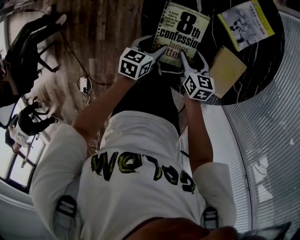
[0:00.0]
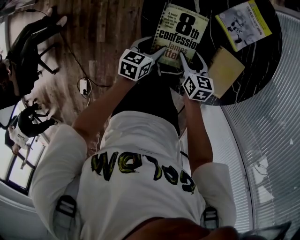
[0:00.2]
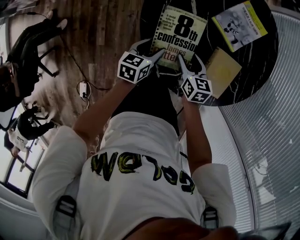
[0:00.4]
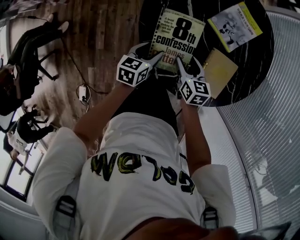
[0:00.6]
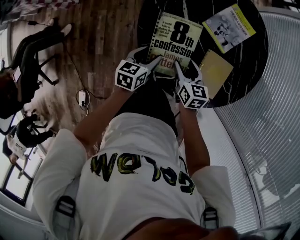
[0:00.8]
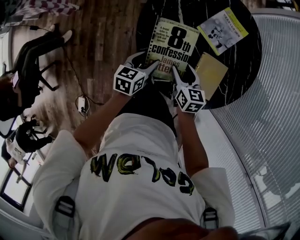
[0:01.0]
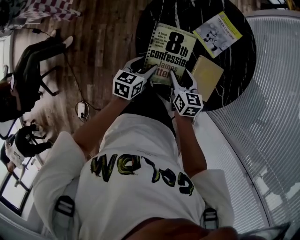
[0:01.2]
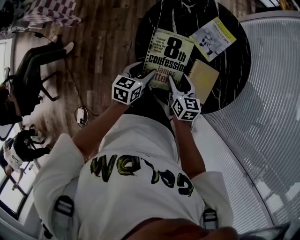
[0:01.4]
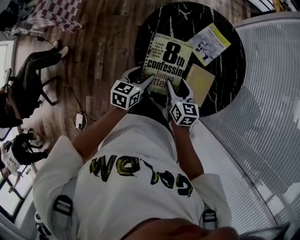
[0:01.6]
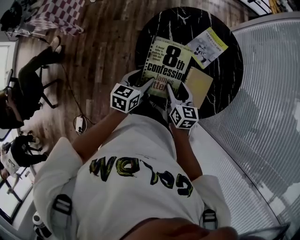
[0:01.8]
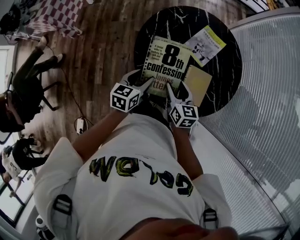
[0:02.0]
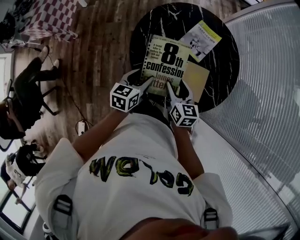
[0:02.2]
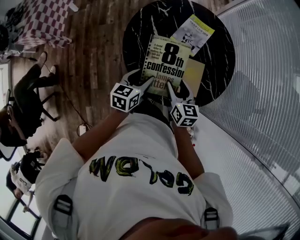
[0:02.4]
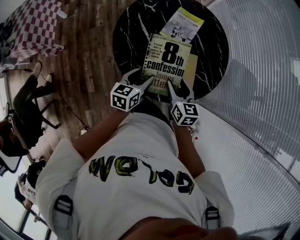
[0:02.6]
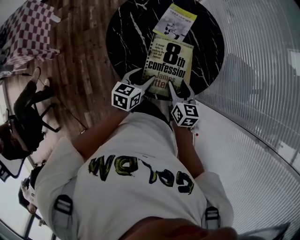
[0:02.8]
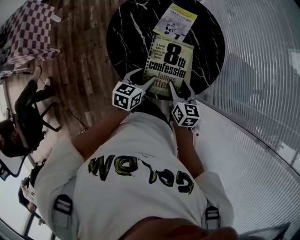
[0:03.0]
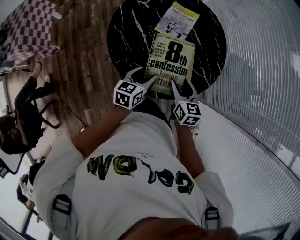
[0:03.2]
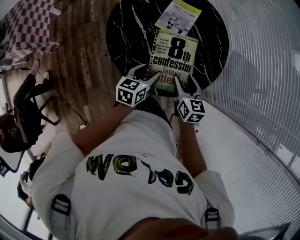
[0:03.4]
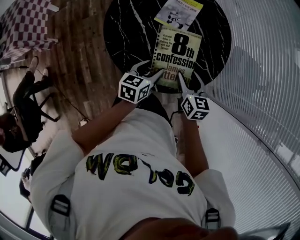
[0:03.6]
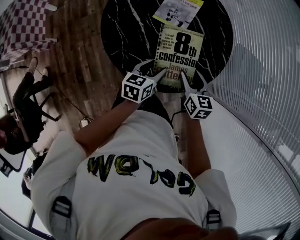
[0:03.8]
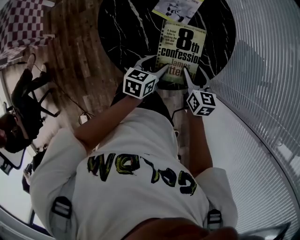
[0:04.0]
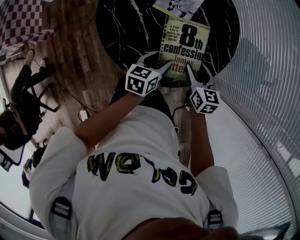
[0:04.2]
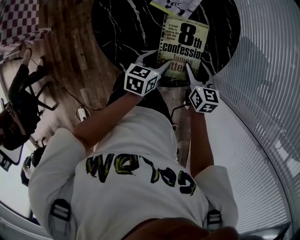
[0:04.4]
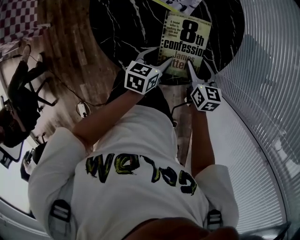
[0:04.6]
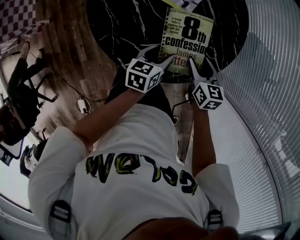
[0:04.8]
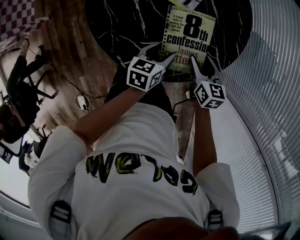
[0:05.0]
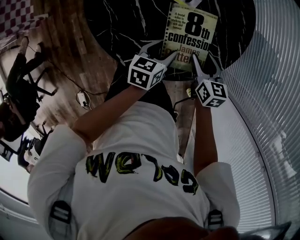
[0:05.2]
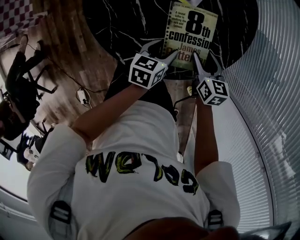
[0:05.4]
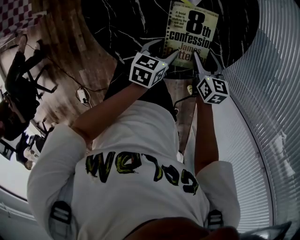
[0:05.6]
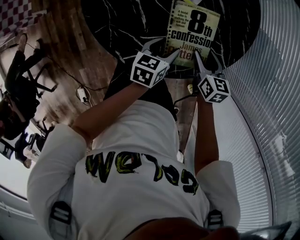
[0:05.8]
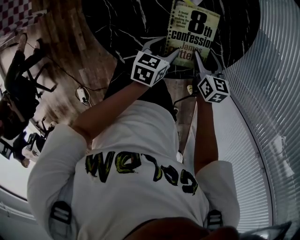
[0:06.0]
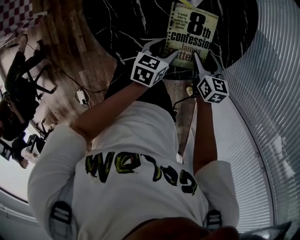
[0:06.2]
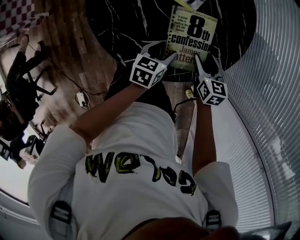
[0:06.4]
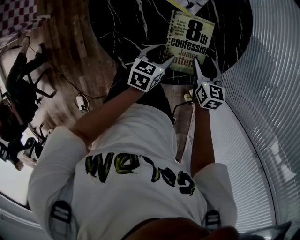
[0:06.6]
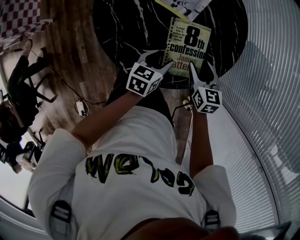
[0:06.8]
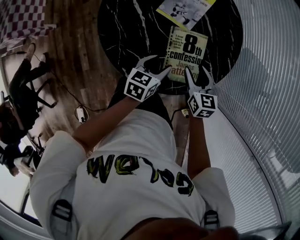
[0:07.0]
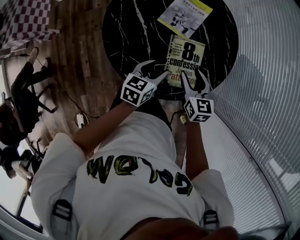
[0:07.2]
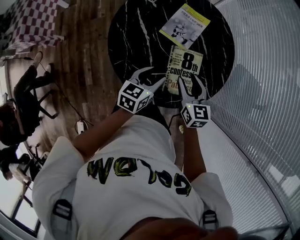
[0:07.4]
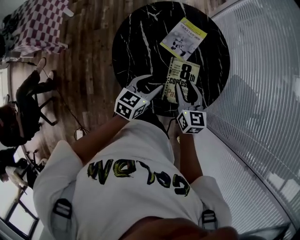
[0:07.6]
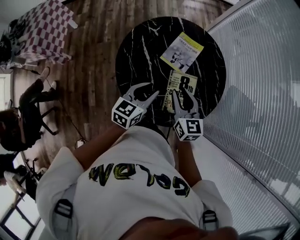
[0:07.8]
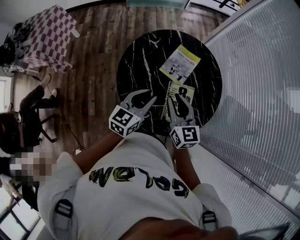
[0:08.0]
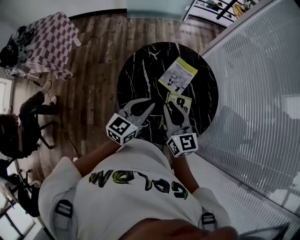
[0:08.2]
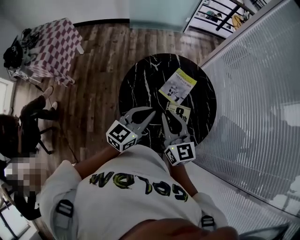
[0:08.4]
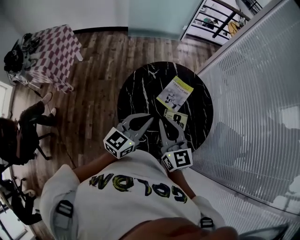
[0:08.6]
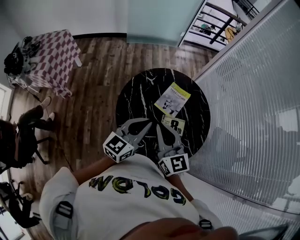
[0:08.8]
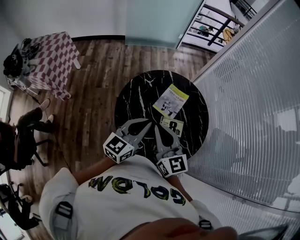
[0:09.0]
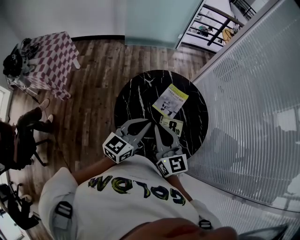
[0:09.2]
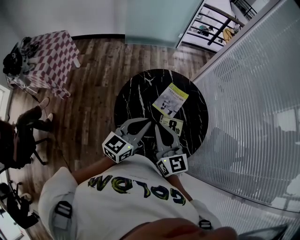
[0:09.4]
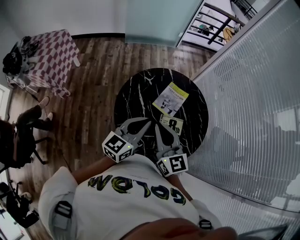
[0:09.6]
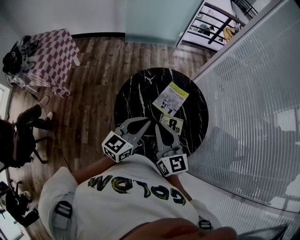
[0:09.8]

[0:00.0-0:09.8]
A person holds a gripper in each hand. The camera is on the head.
0:00.0 to 0:01.4: Both grippers travel together upward, approximately 15 cm.
0:01.4 to 0:02.8: The left gripper heads to the right and upward, covering approximately 15 cm; the right gripper heads to the right, upward and backward, covering roughly 15 cm.
0:02.8 to 0:04.2: Both grippers move to the right, approximately 5 cm.
0:04.2 to 0:05.6: The grippers move only a little.
0:05.6 to 0:07.0: The two grippers go about 5 cm upward.
0:07.0 to 0:08.4: The two grippers go about 30 cm upward and to the left. The right gripper angles its fingers upward, by some 30 degrees, and closes its fingers, while the left gripper turns by approximately 40 degrees, and closes its fingers.
0:08.4 to 0:09.8: The grippers move only a little.

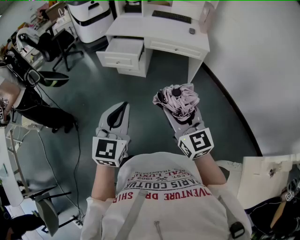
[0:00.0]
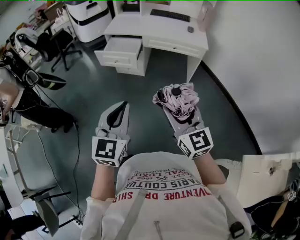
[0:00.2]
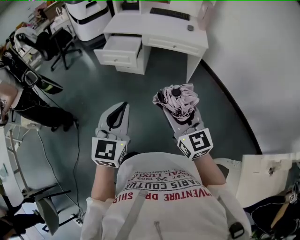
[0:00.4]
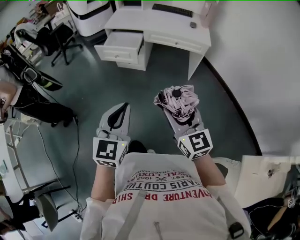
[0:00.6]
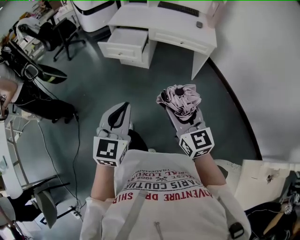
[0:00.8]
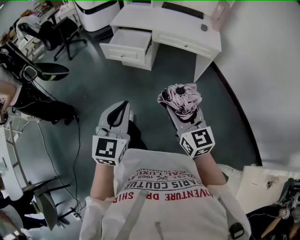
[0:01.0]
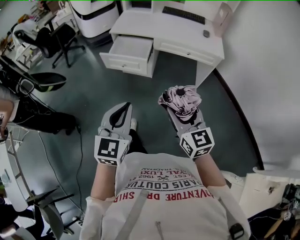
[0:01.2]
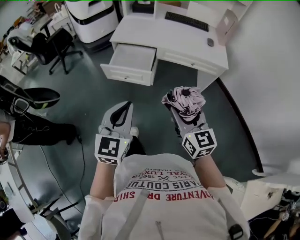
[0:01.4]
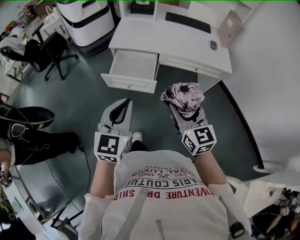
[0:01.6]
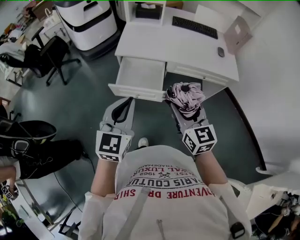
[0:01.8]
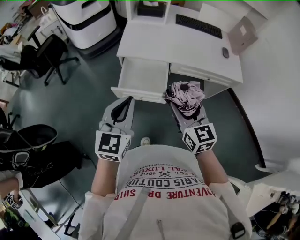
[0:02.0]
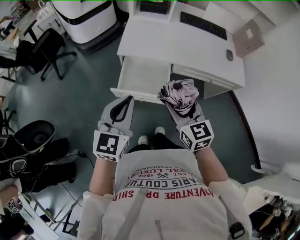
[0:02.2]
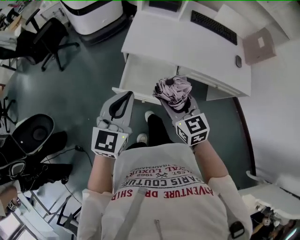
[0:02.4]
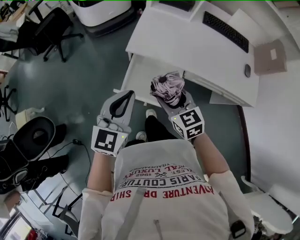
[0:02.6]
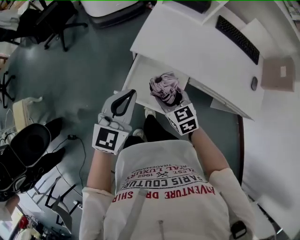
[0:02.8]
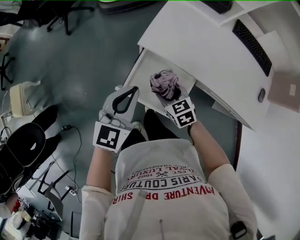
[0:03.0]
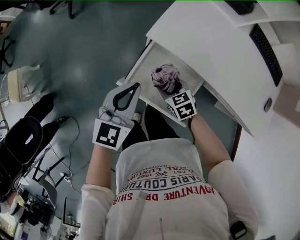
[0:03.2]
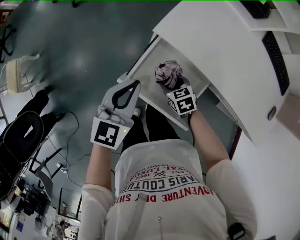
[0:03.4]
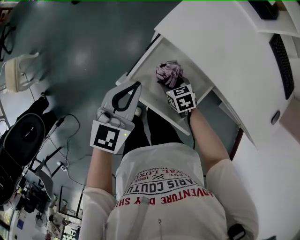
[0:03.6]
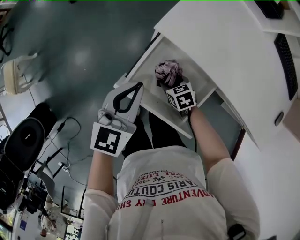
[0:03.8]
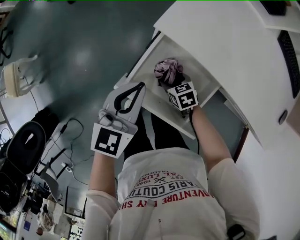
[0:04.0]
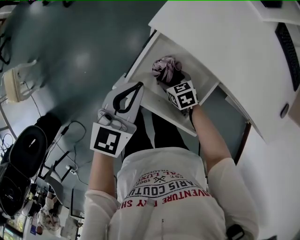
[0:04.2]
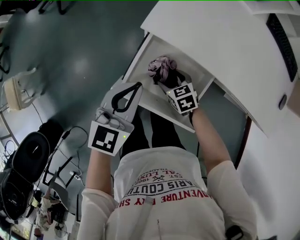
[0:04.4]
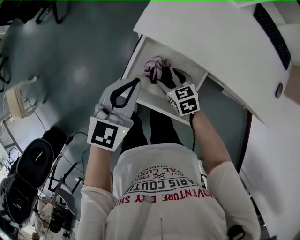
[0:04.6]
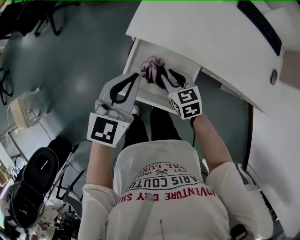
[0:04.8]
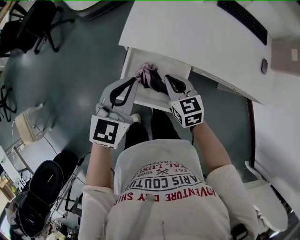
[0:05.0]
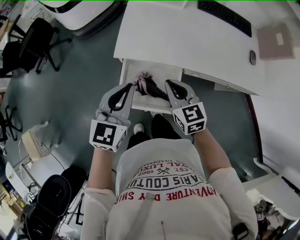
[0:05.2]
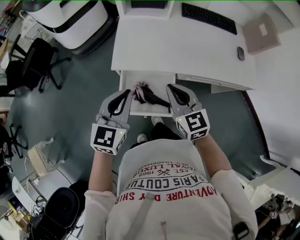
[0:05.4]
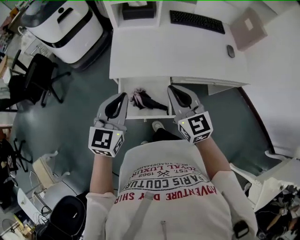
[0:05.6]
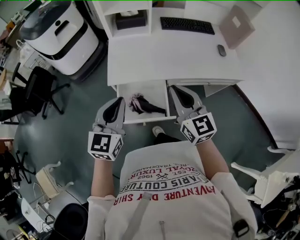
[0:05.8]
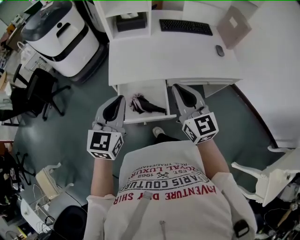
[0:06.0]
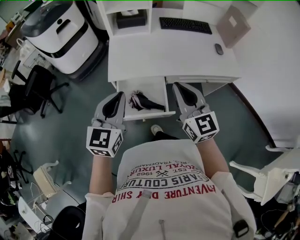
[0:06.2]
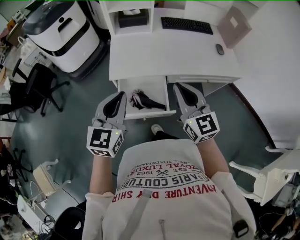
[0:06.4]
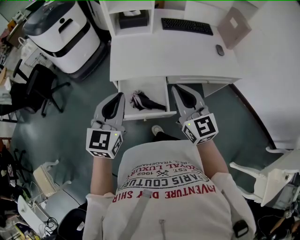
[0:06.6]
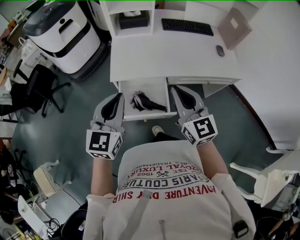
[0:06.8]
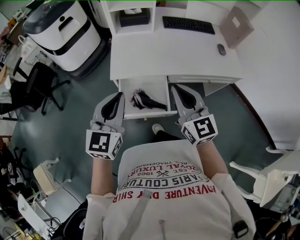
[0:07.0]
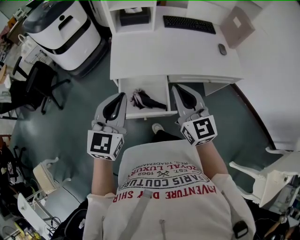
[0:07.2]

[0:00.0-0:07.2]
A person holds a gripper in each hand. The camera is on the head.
0:00.0 to 0:01.4: Both grippers travel together forward, roughly 25 cm.
0:01.4 to 0:02.8: The two grippers travel together, forward and to the left, approximately 50 cm. The right gripper shifts some 20 cm downward, and rotates some 40 degrees.
0:02.8 to 0:04.4: The left gripper heads downward, covering roughly 15 cm, while the right gripper travels downward by approximately 25 cm, and turns by approximately 20 degrees.
0:04.4 to 0:05.8: The right gripper goes some 50 cm upward, tilts its fingers some 50 degrees upward, and closes. Meanwhile the left gripper moves upward, approximately 25 cm, and turns by roughly 30 degrees.
0:05.8 to 0:07.2: The grippers move only a little.

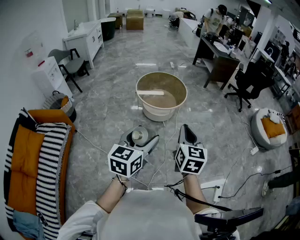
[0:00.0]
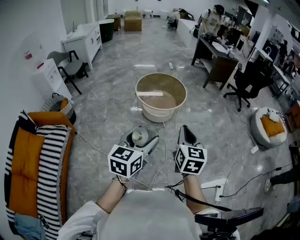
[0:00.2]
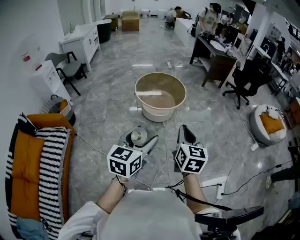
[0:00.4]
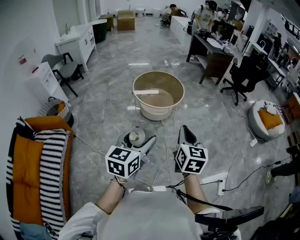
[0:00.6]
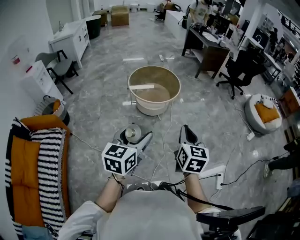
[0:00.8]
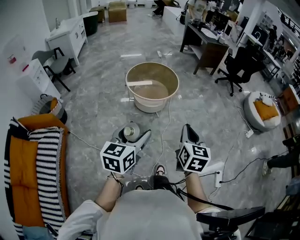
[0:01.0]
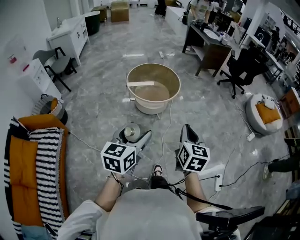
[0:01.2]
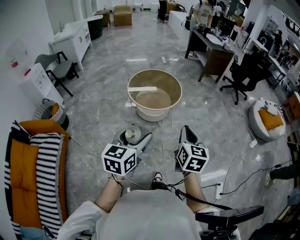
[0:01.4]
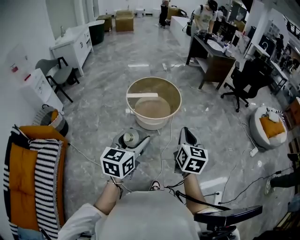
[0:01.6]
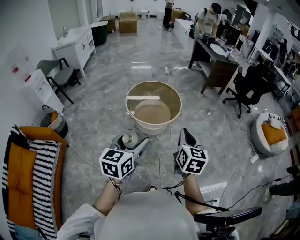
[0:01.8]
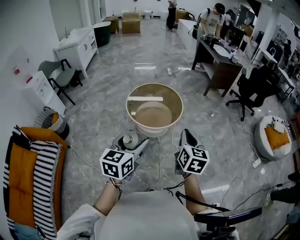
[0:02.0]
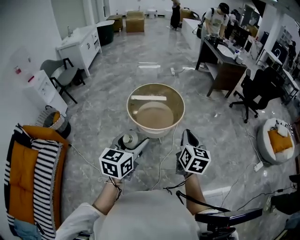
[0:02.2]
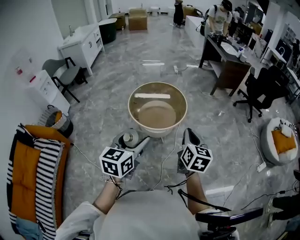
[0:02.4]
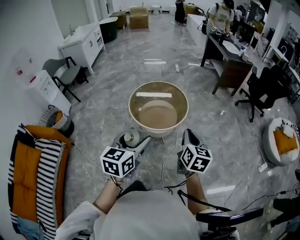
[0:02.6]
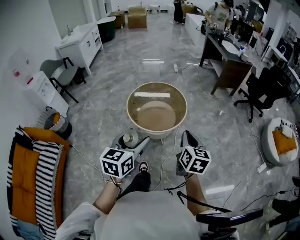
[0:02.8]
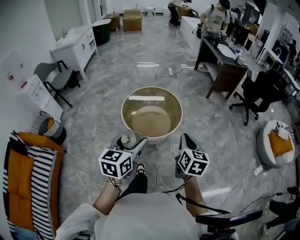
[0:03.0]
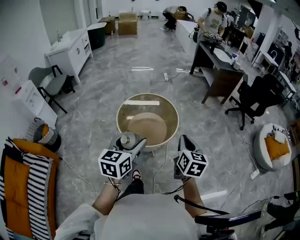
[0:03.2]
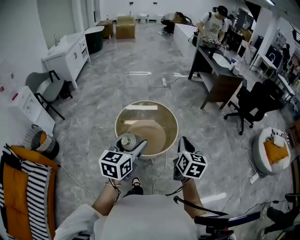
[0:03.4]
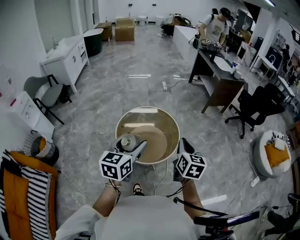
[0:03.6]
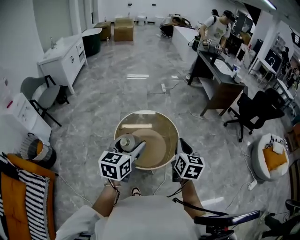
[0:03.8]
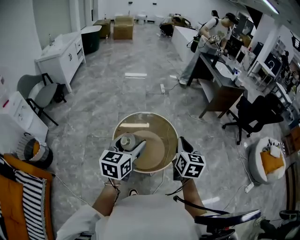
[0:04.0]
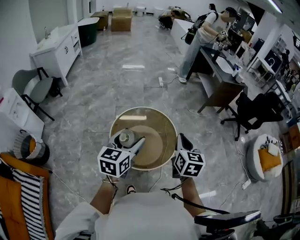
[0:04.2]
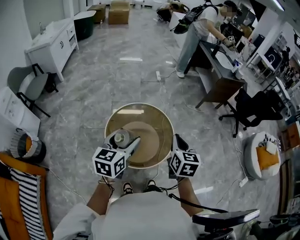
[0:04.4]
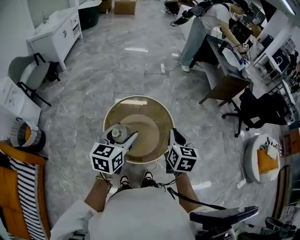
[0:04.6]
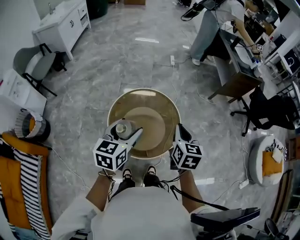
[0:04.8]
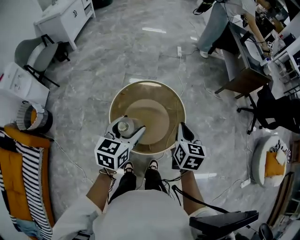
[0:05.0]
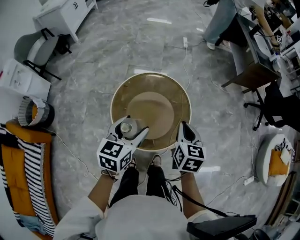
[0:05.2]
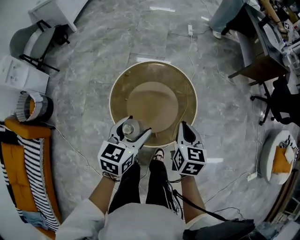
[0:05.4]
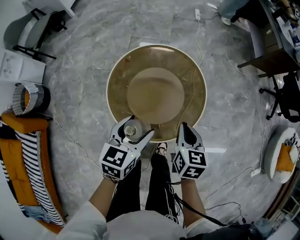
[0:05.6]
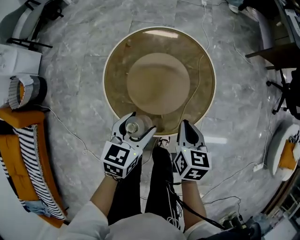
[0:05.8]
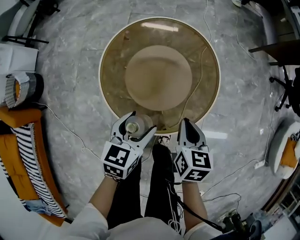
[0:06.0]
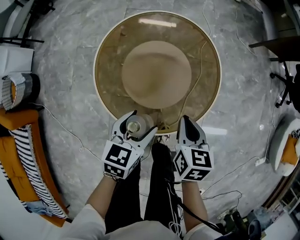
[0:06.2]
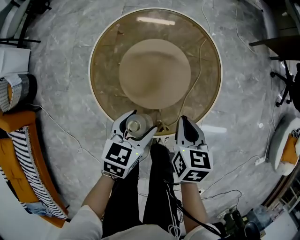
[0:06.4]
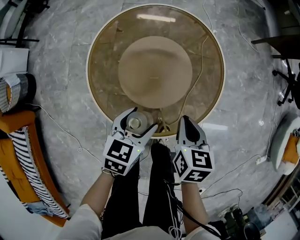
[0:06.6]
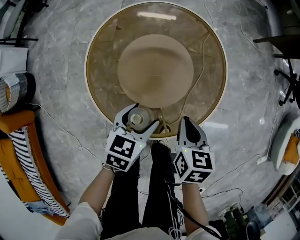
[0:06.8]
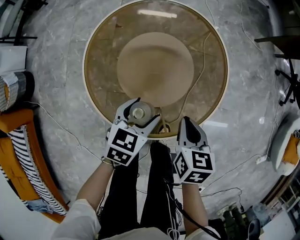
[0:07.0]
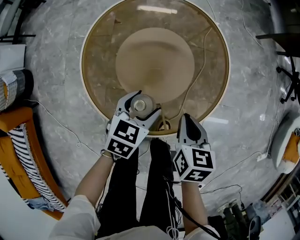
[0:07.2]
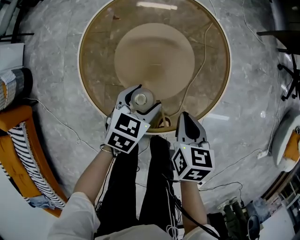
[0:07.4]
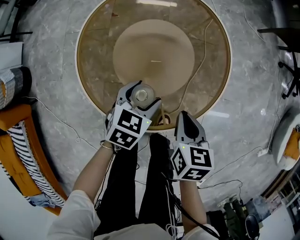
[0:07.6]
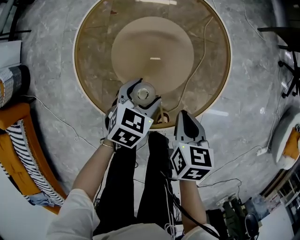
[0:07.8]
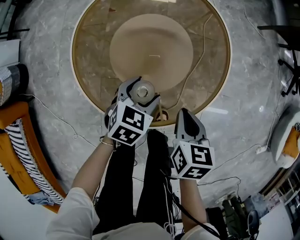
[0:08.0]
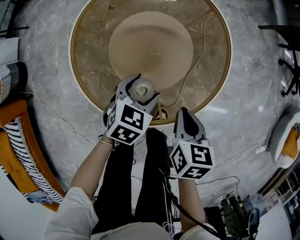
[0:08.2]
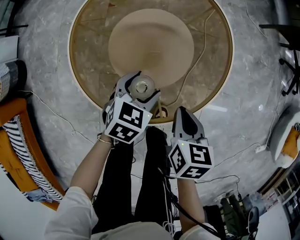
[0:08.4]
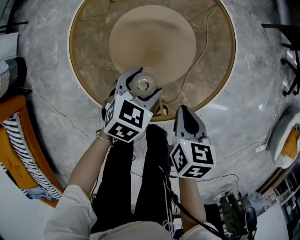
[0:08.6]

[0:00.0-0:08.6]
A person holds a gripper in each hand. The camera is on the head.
0:00.0 to 0:01.4: The grippers both shift forward by some 10 cm.
0:01.4 to 0:02.8: Both grippers travel together forward, roughly 25 cm.
0:02.8 to 0:04.4: The grippers both shift forward by about 35 cm.
0:04.4 to 0:05.8: The grippers both shift downward by about 30 cm. The right gripper changes its angle by roughly 20 degrees. The left gripper swivels approximately 20 degrees.
0:05.8 to 0:07.2: The grippers both shift downward by some 15 cm.
0:07.2 to 0:08.6: The grippers make only small movements.
